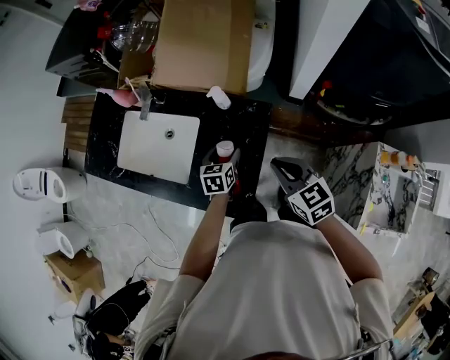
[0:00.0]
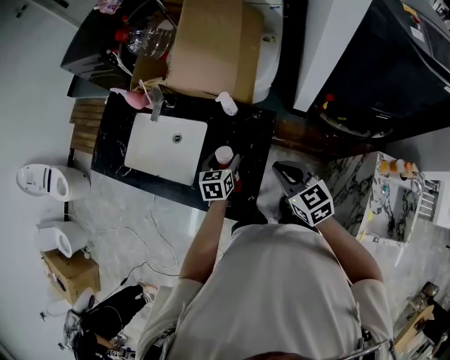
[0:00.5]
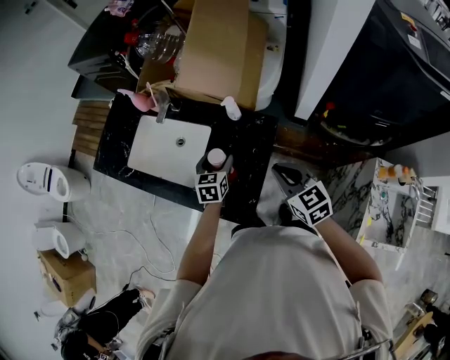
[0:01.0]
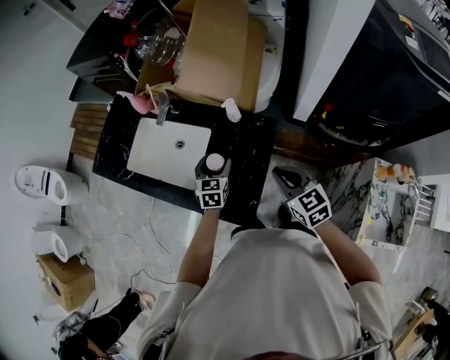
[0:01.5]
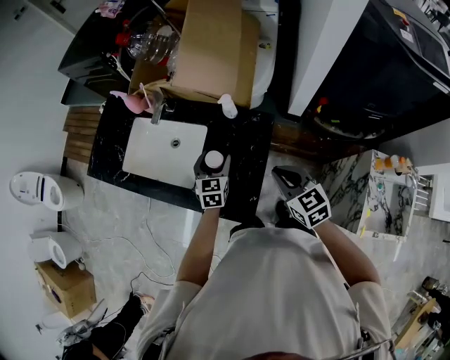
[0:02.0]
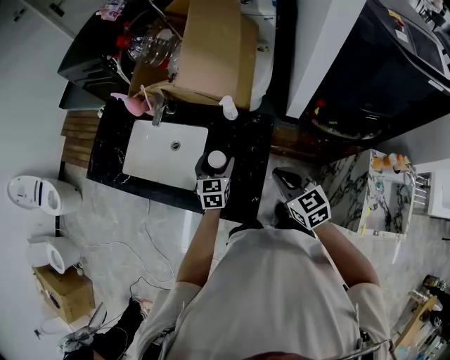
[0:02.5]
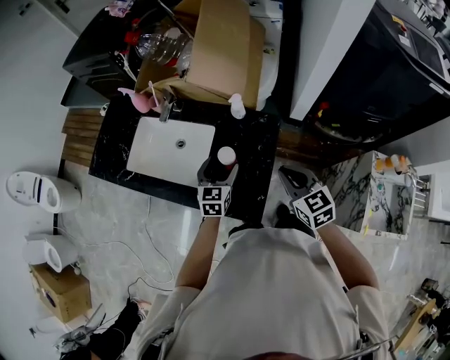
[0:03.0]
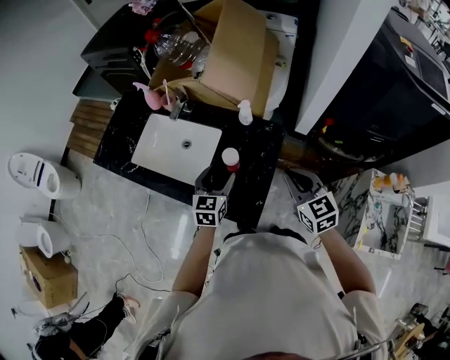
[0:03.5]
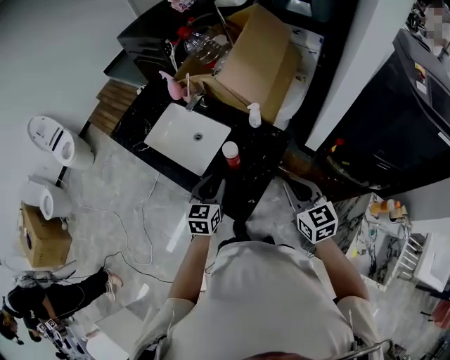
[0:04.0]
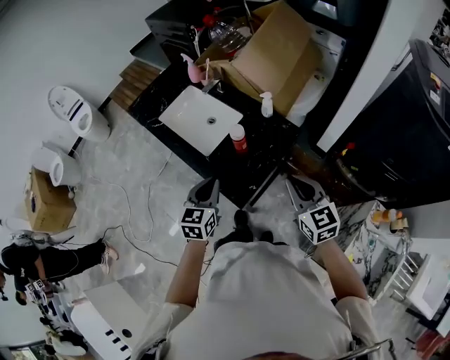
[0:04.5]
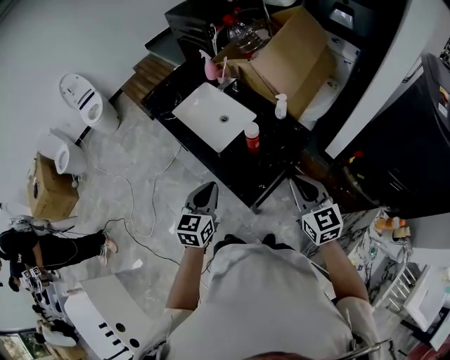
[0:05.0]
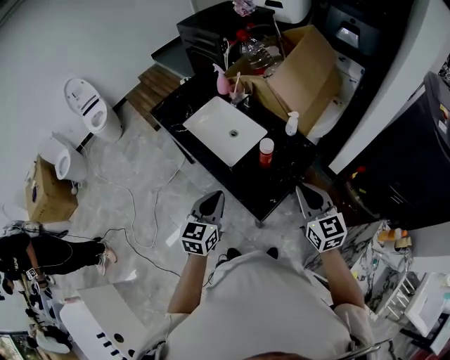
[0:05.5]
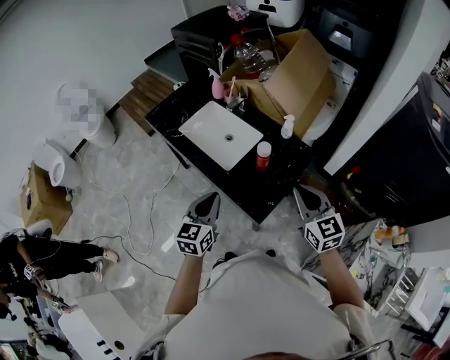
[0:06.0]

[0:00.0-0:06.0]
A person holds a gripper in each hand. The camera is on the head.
0:00.0 to 0:02.0: The left gripper moves upward and to the left, some 10 cm, and changes its angle by approximately 20 degrees.
0:02.0 to 0:04.0: The left gripper heads backward and upward, covering about 20 cm, and closes up; the right gripper is displaced upward and backward by approximately 10 cm.
0:04.0 to 0:06.0: The right gripper shifts some 10 cm to the left and upward. The left gripper is displaced to the left, backward and upward by about 20 cm.

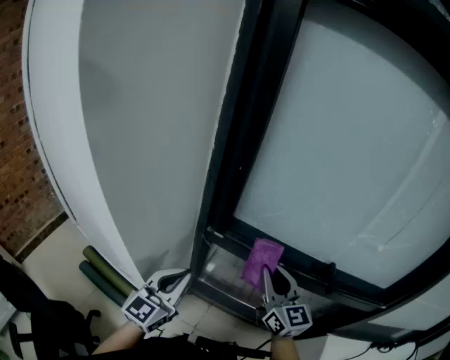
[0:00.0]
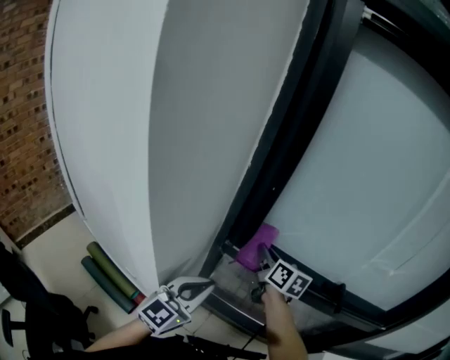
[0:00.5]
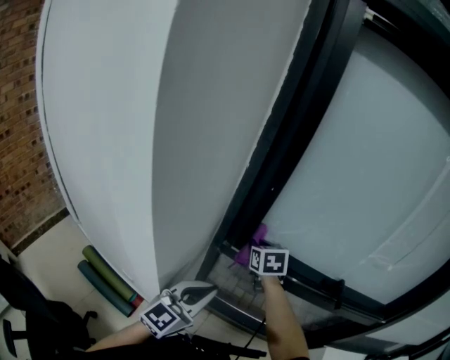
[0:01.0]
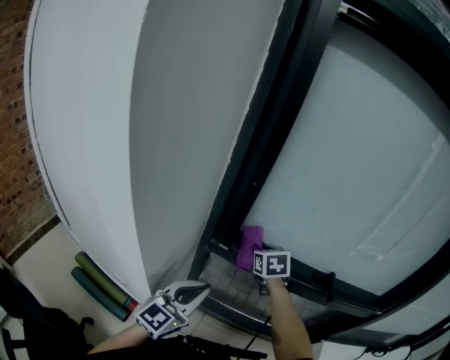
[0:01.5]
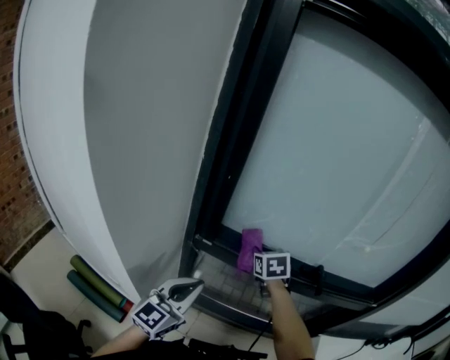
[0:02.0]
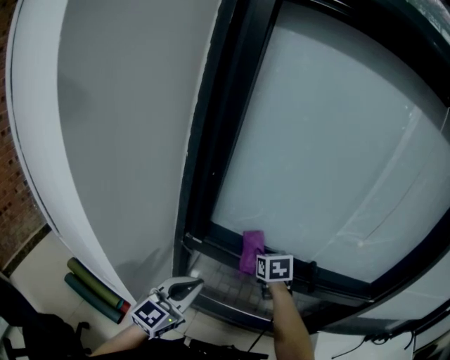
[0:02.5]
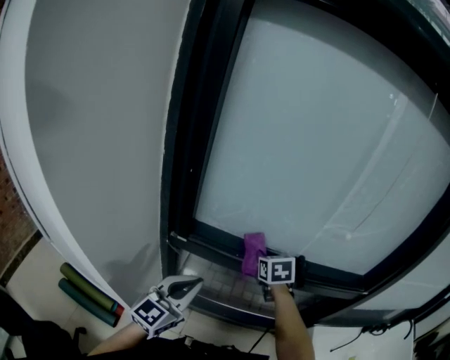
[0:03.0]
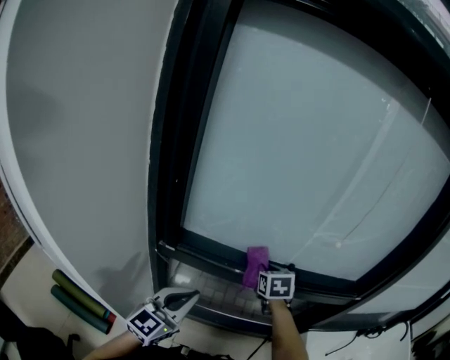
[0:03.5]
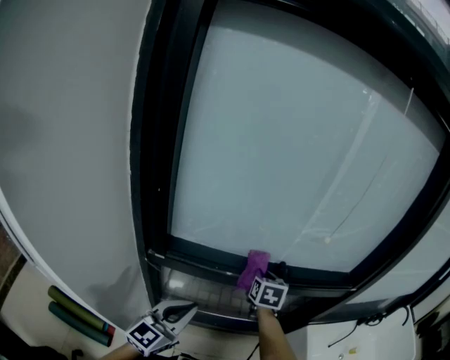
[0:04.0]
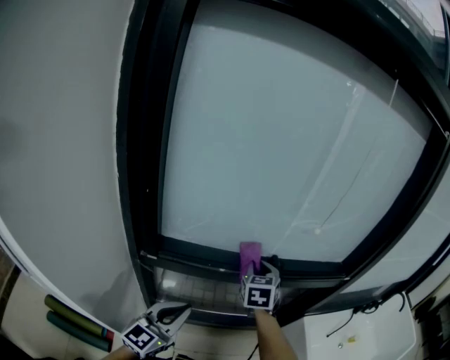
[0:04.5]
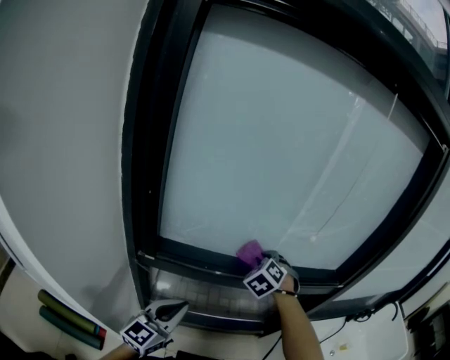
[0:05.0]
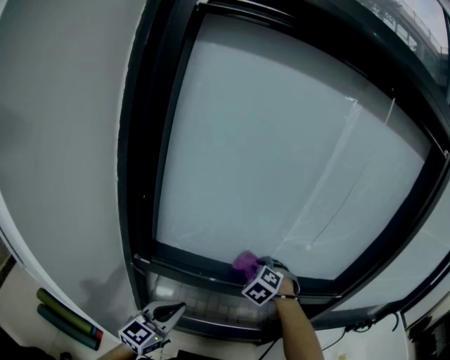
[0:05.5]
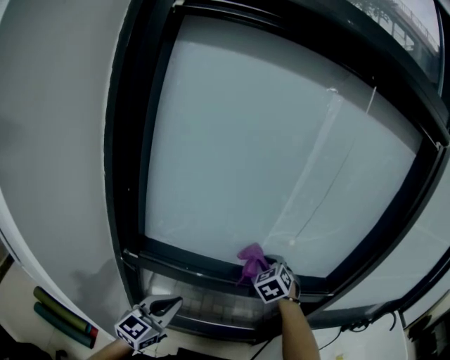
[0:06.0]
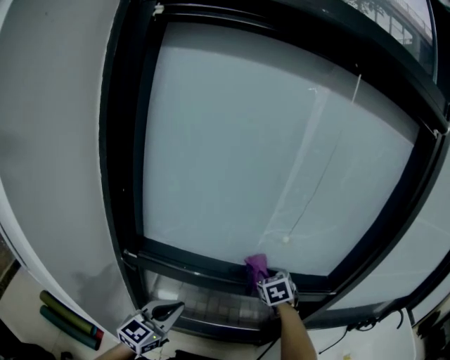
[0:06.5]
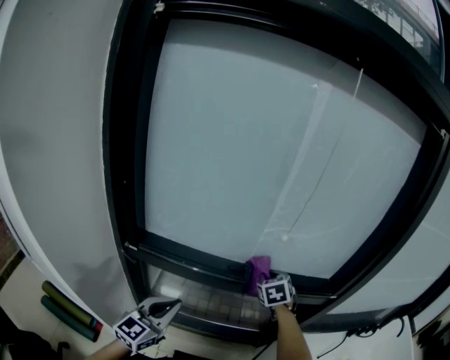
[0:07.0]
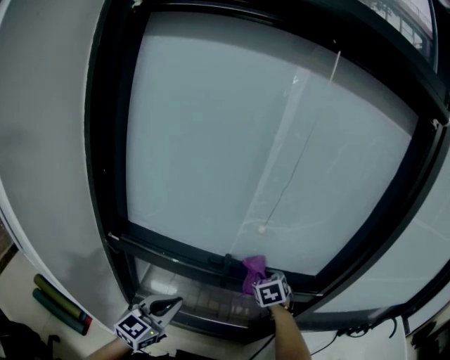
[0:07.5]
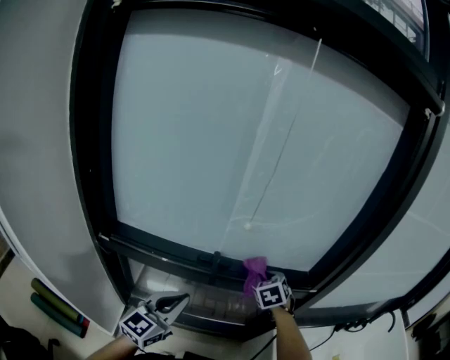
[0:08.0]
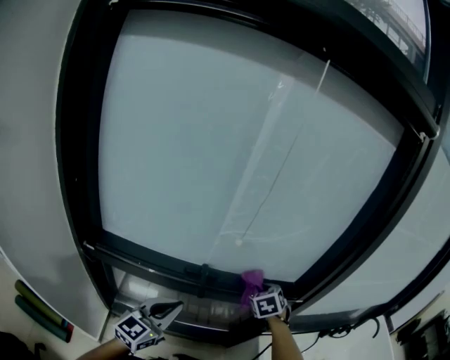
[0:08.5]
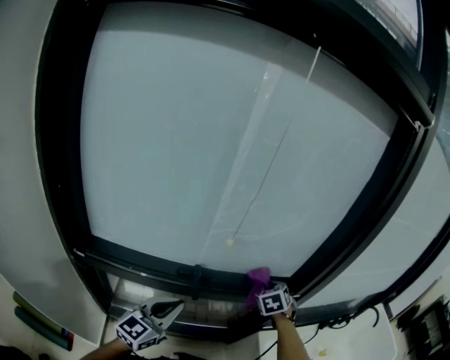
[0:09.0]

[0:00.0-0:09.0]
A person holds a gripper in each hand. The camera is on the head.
0:00.0 to 0:02.0: The left gripper travels to the right by about 5 cm. Meanwhile the right gripper moves forward and downward, roughly 15 cm, and angles its fingers downward, by some 40 degrees.
0:02.0 to 0:04.5: The left gripper goes some 10 cm to the right, while the right gripper shifts roughly 15 cm to the right, and swivels some 30 degrees.
0:04.5 to 0:07.0: The right gripper moves to the right and forward, roughly 15 cm, and swivels roughly 20 degrees; the left gripper travels to the right by roughly 5 cm.
0:07.0 to 0:09.0: The right gripper heads to the right, covering approximately 15 cm; the left gripper goes roughly 15 cm to the right and forward.

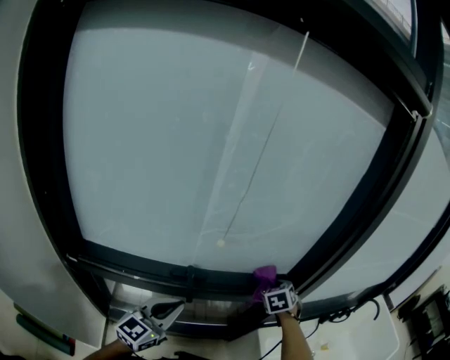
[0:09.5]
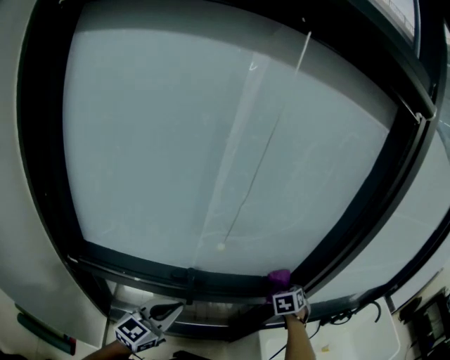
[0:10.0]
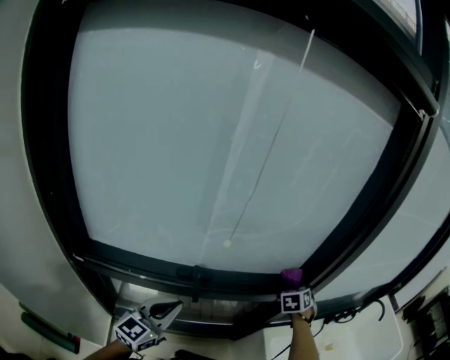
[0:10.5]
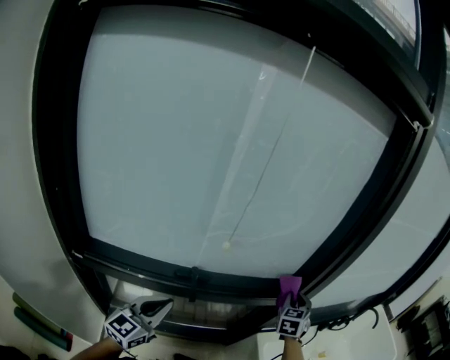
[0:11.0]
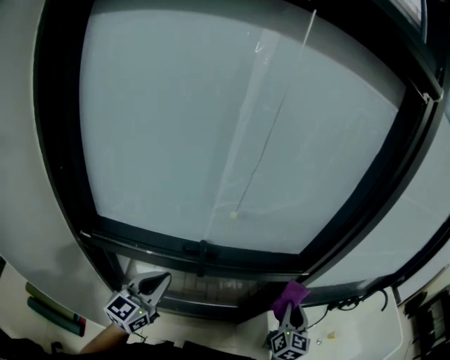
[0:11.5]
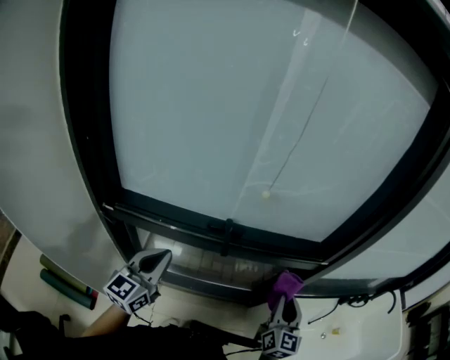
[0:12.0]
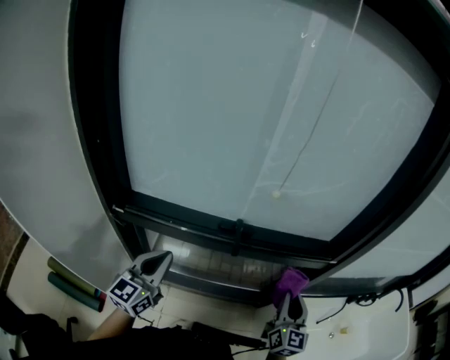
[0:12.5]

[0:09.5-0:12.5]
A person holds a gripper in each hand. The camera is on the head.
0:09.5 to 0:11.0: The right gripper is displaced to the right by about 10 cm, and turns by some 30 degrees.
0:11.0 to 0:12.5: The left gripper moves to the left and backward, roughly 10 cm, while the right gripper travels backward and to the left by approximately 20 cm, and turns by some 40 degrees.

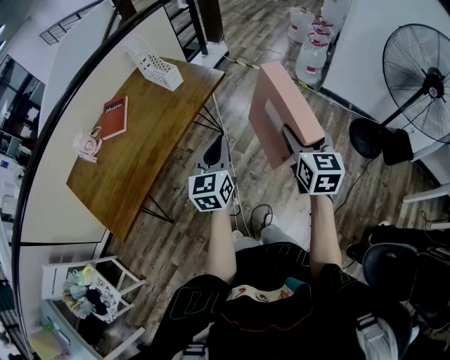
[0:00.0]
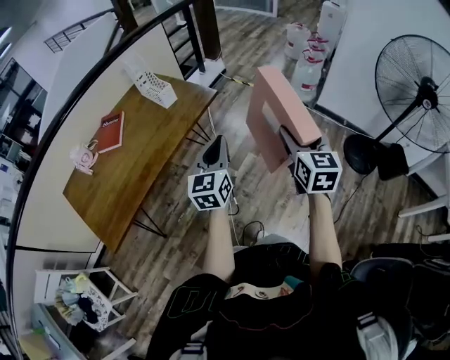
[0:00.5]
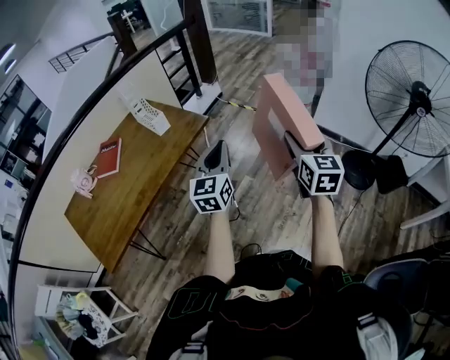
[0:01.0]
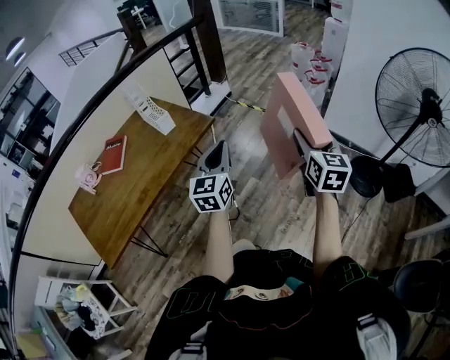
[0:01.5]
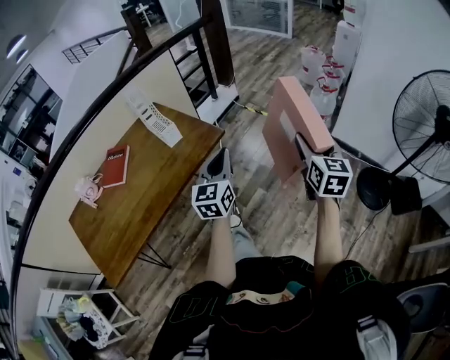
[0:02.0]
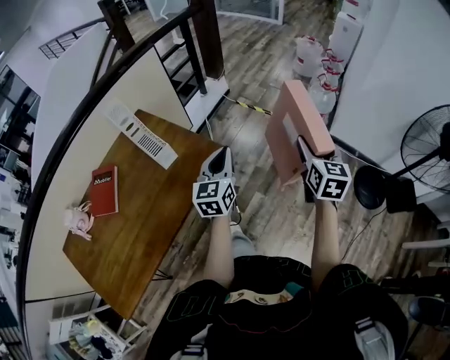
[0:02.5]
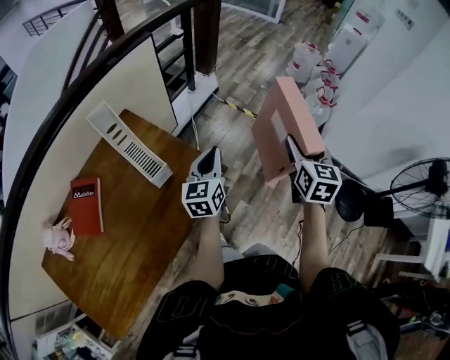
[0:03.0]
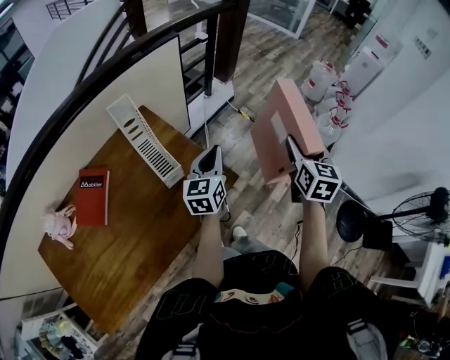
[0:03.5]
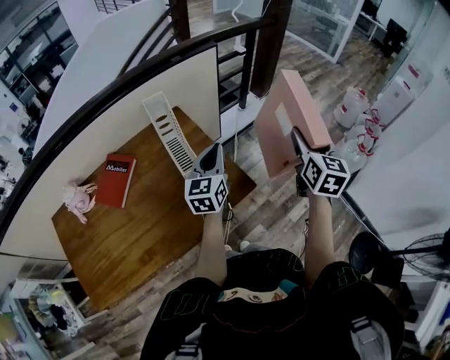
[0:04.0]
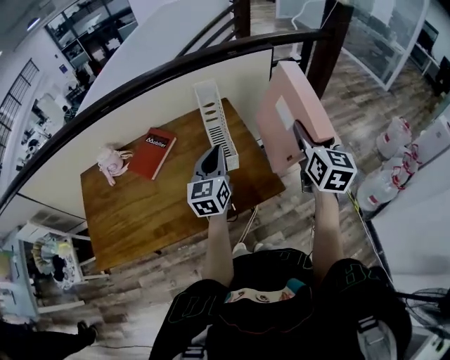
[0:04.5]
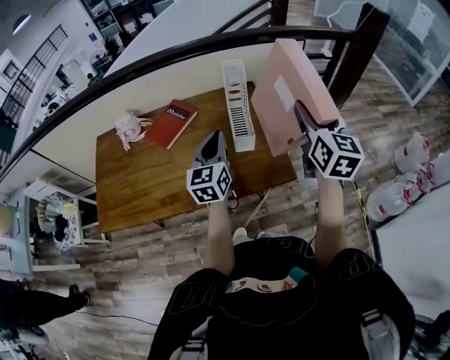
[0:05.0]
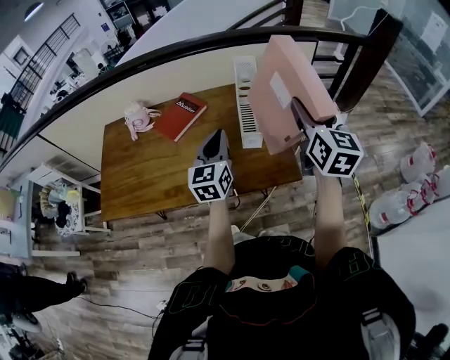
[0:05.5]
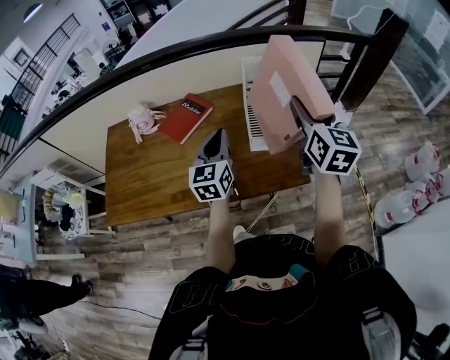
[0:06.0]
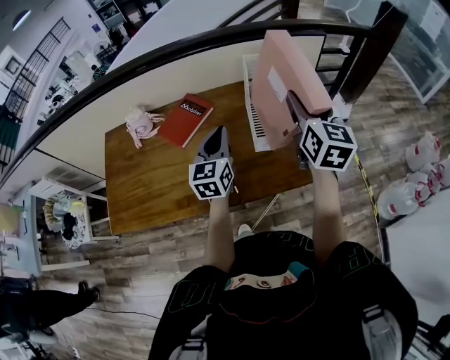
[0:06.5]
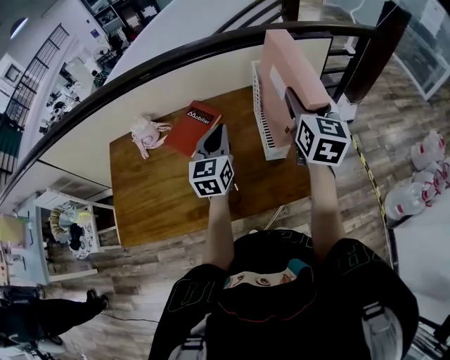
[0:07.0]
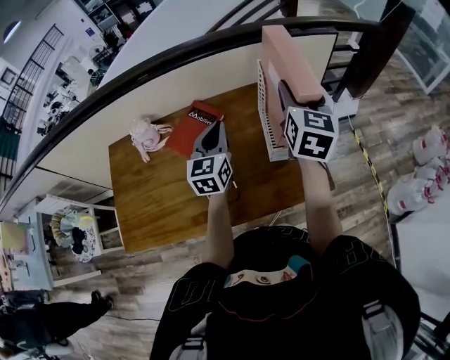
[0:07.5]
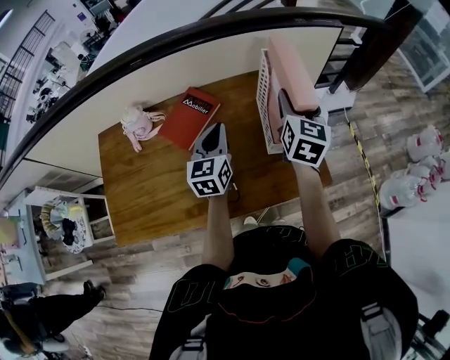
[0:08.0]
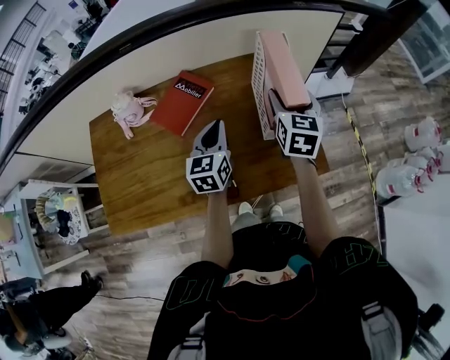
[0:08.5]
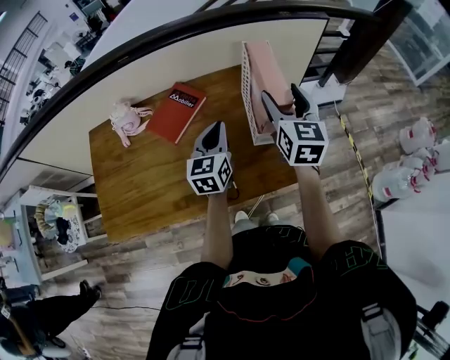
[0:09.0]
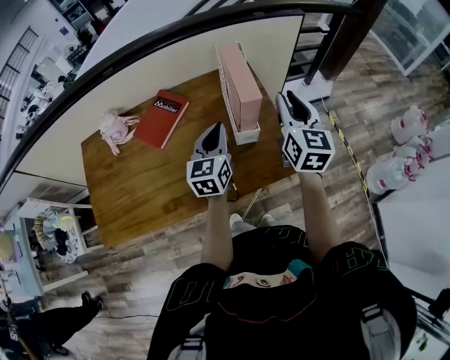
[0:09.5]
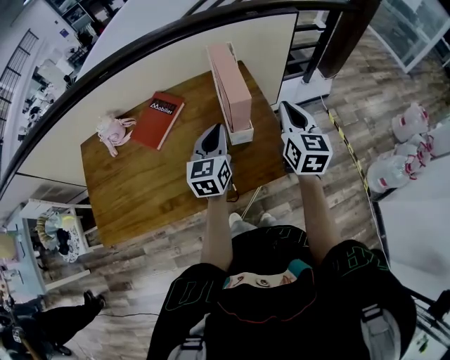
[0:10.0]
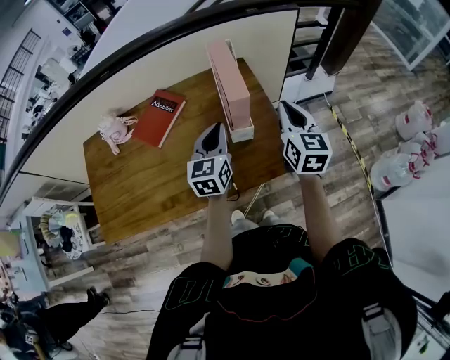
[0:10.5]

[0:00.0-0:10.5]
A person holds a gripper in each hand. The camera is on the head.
0:00.0 to 0:02.0: The right gripper shifts approximately 25 cm forward and to the right; the left gripper heads forward, covering some 20 cm.
0:02.0 to 0:04.0: The grippers both shift forward and to the left by roughly 40 cm.
0:04.0 to 0:06.5: The right gripper ends up some 25 cm from where it was, and changes its angle by about 30 degrees. Meanwhile the left gripper ends up approximately 20 cm from where it was, and rotates roughly 30 degrees.
0:06.5 to 0:08.5: The left gripper travels downward and to the left by roughly 10 cm; the right gripper is displaced downward, to the left and forward by roughly 20 cm.
0:08.5 to 0:10.5: The left gripper travels to the right by roughly 15 cm, while the right gripper is displaced to the right and backward by roughly 15 cm, and closes its fingers.
